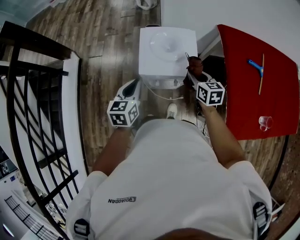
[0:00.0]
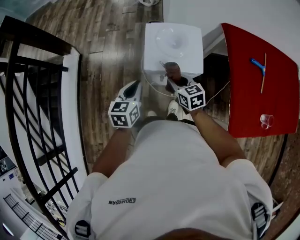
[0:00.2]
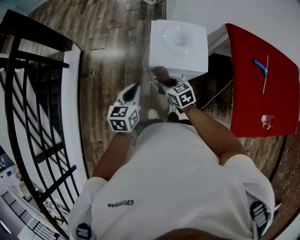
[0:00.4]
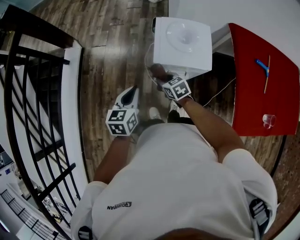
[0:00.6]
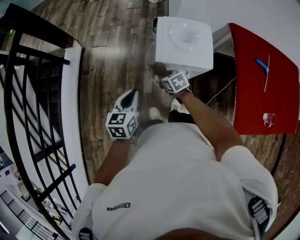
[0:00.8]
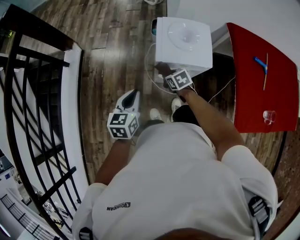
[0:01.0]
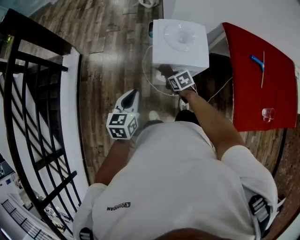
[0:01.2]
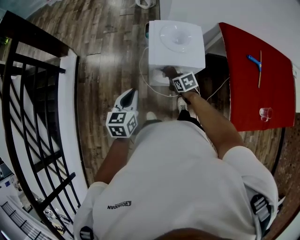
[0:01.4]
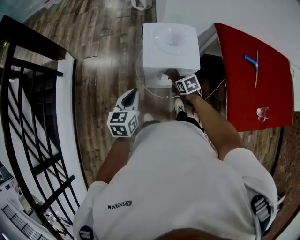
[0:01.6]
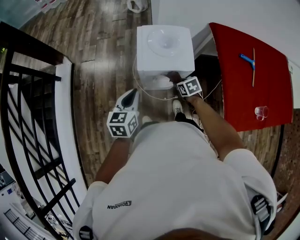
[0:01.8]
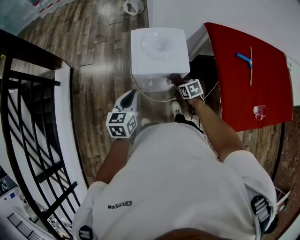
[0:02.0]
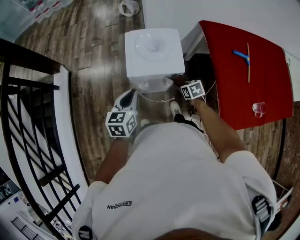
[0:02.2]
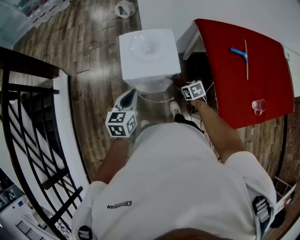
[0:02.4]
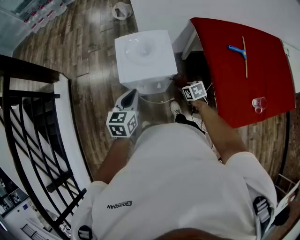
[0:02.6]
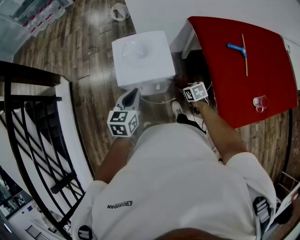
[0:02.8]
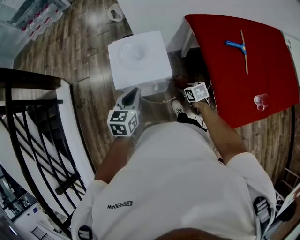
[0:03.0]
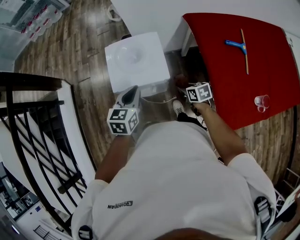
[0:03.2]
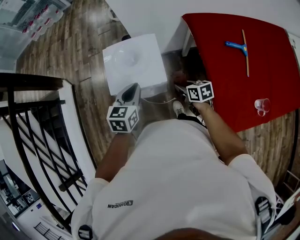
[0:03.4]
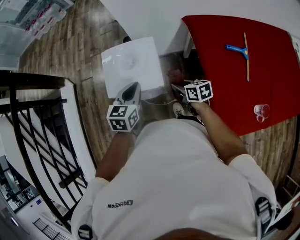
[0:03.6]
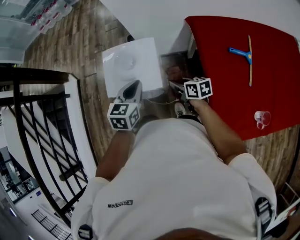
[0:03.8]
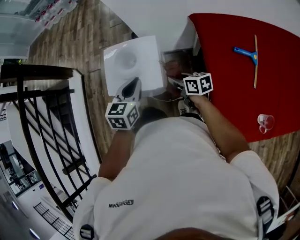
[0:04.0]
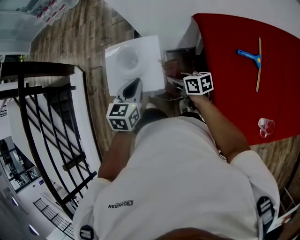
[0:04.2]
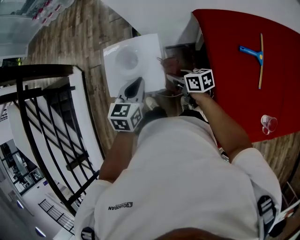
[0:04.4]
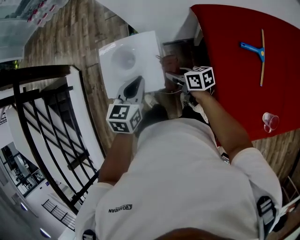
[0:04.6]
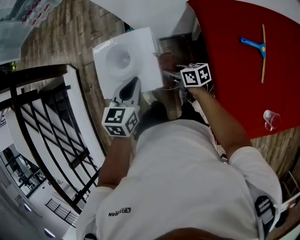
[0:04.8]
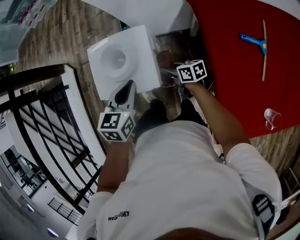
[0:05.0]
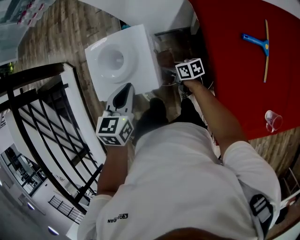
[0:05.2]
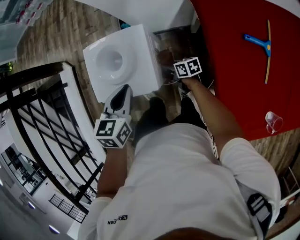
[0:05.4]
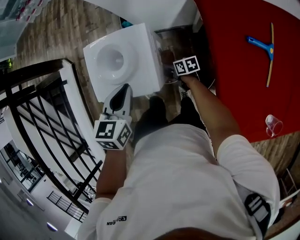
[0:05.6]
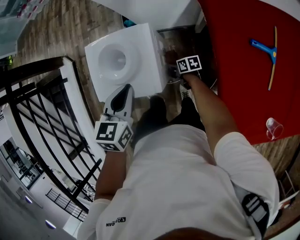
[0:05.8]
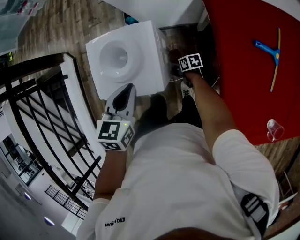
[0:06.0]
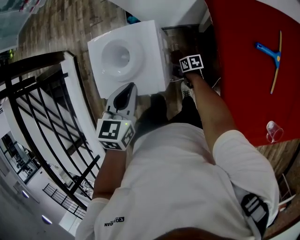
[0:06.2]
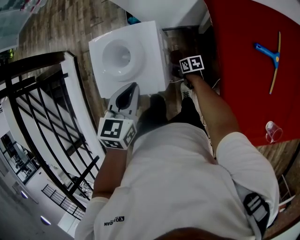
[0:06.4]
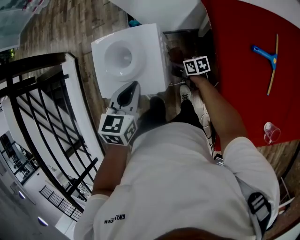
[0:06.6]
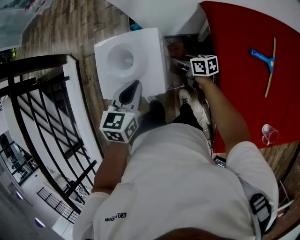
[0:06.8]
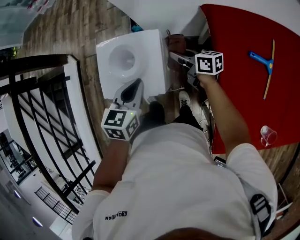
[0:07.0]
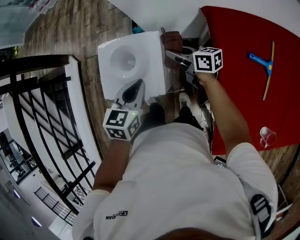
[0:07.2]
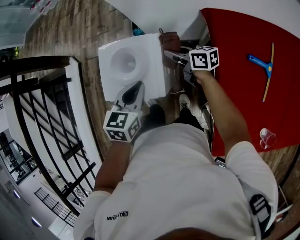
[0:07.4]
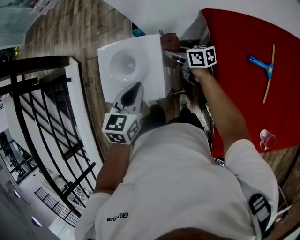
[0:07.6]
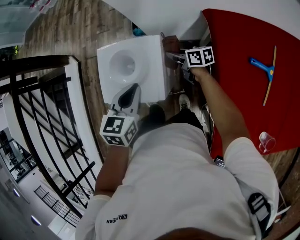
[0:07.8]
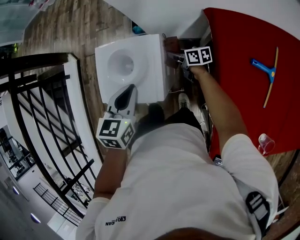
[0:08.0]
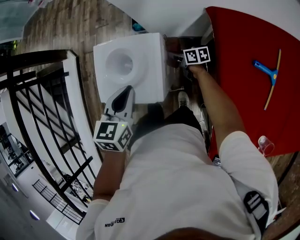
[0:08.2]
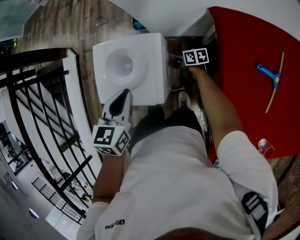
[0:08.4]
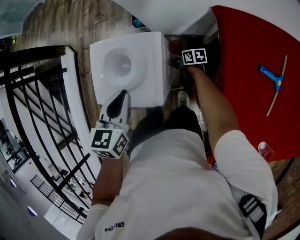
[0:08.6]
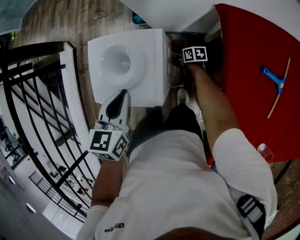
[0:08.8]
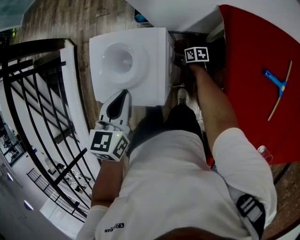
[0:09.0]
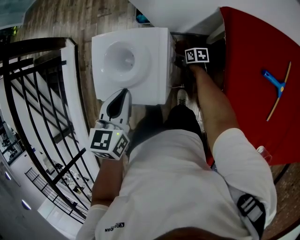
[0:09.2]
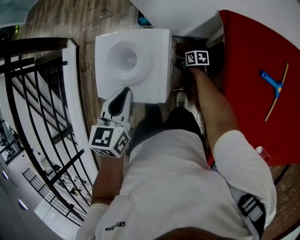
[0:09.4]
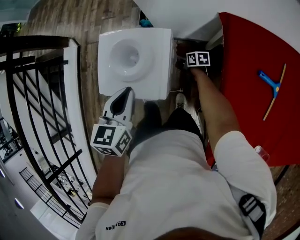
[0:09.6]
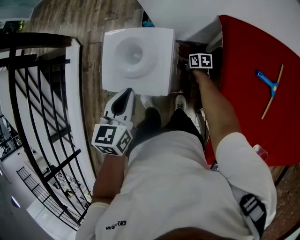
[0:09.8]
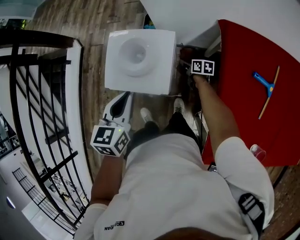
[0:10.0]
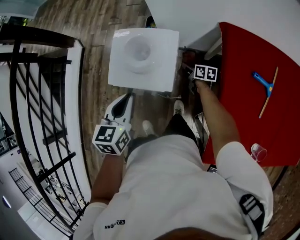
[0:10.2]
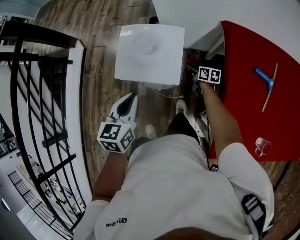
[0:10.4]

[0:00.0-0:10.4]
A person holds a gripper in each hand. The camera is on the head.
0:00.0 to 0:01.4: The left gripper travels to the left and backward by some 10 cm, while the right gripper moves downward and to the left, about 20 cm, and turns by about 30 degrees.
0:01.4 to 0:03.0: The two grippers go roughly 20 cm to the right.
0:03.0 to 0:04.4: The left gripper travels to the right and forward by some 15 cm. Meanwhile the right gripper is displaced forward and upward by some 15 cm, and angles its fingers upward, by roughly 30 degrees.
0:04.4 to 0:06.0: The right gripper heads downward, covering some 30 cm, and swivels roughly 30 degrees.
0:06.0 to 0:07.4: The right gripper moves upward, some 30 cm, and angles its fingers upward, by roughly 30 degrees.
0:07.4 to 0:09.0: The right gripper is displaced downward by roughly 30 cm, and angles its fingers downward, by approximately 30 degrees.
0:09.0 to 0:10.4: The left gripper moves to the left and backward, about 15 cm; the right gripper travels upward and backward by roughly 15 cm.

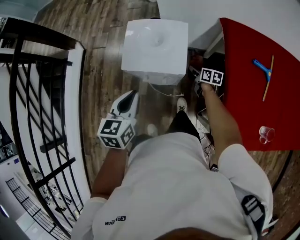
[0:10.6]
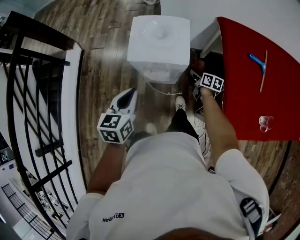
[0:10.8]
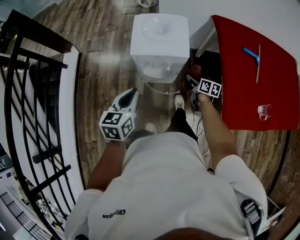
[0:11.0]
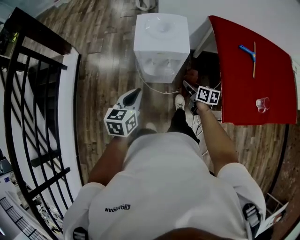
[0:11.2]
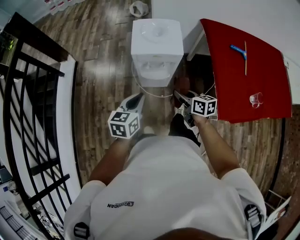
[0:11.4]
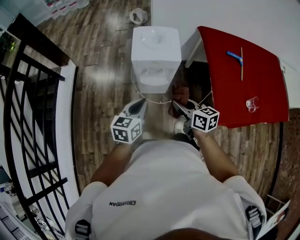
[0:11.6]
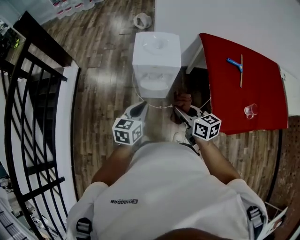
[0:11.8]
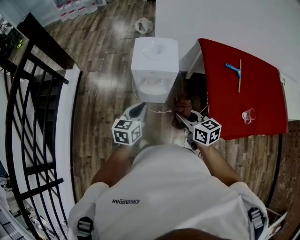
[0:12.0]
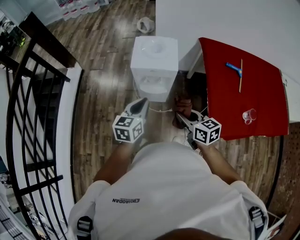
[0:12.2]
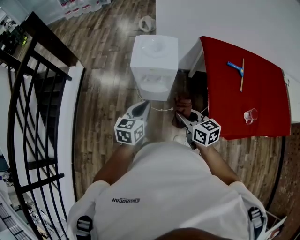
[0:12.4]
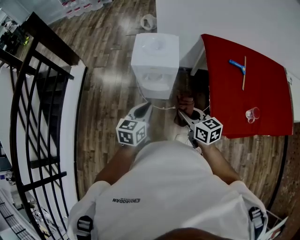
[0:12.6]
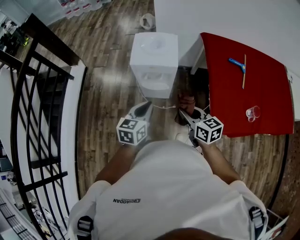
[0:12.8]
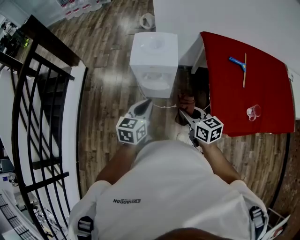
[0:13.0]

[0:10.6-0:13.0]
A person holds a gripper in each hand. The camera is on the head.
0:10.6 to 0:11.8: The left gripper shifts approximately 15 cm backward. Meanwhile the right gripper goes about 40 cm backward, upward and to the left, and rotates about 20 degrees.
0:11.8 to 0:13.0: Both grippers travel together to the right, approximately 5 cm.

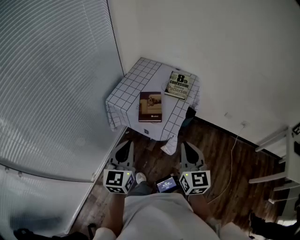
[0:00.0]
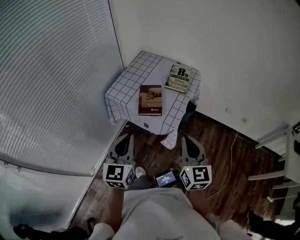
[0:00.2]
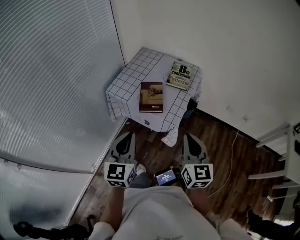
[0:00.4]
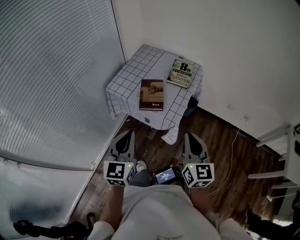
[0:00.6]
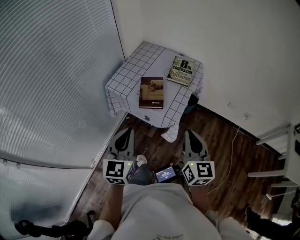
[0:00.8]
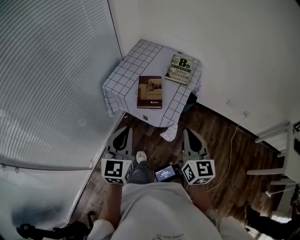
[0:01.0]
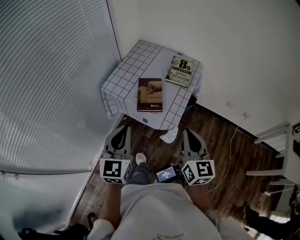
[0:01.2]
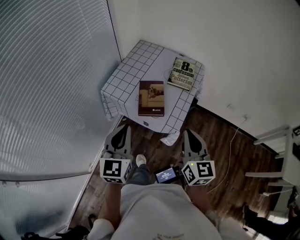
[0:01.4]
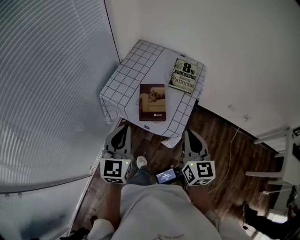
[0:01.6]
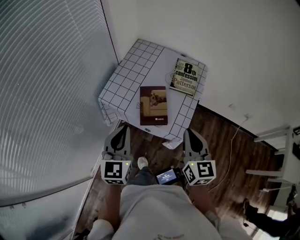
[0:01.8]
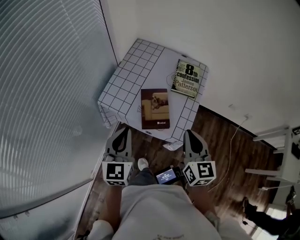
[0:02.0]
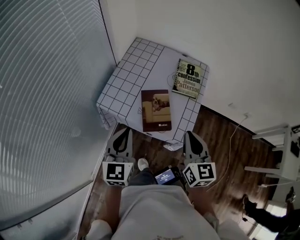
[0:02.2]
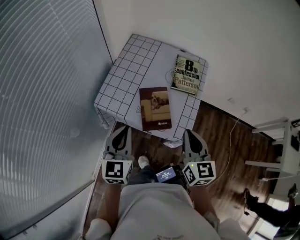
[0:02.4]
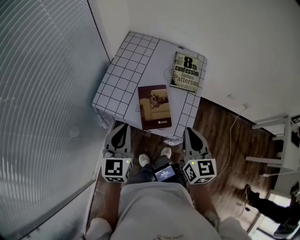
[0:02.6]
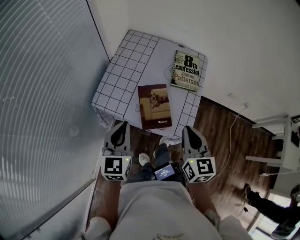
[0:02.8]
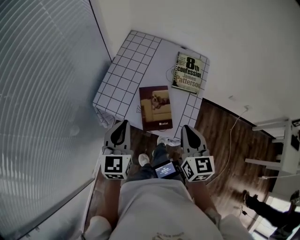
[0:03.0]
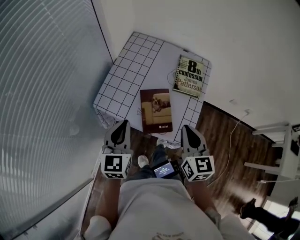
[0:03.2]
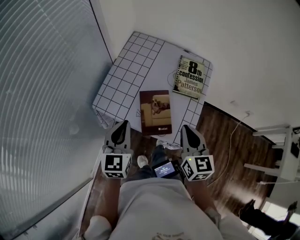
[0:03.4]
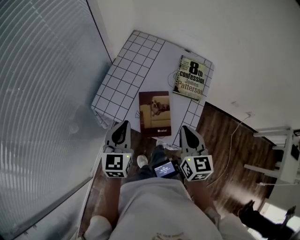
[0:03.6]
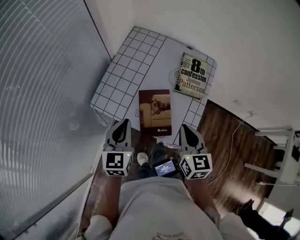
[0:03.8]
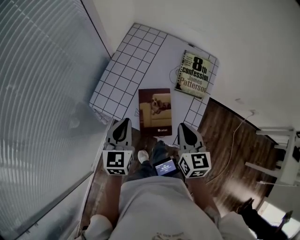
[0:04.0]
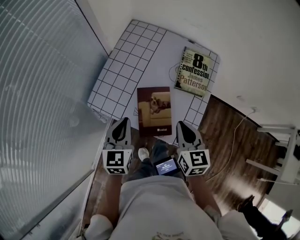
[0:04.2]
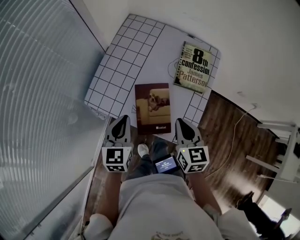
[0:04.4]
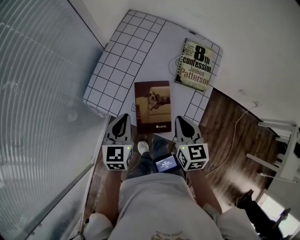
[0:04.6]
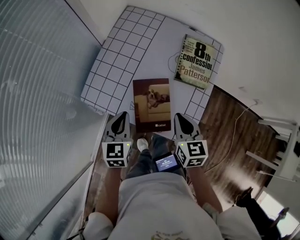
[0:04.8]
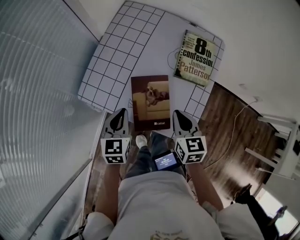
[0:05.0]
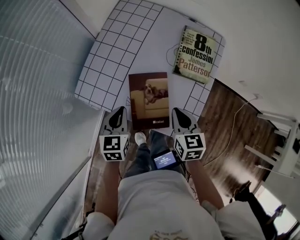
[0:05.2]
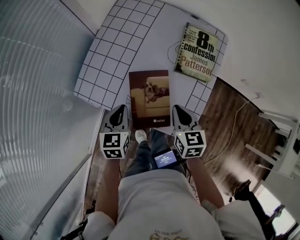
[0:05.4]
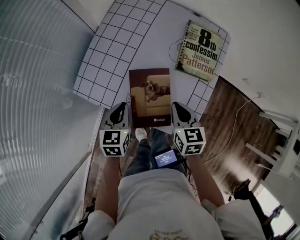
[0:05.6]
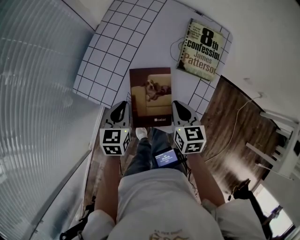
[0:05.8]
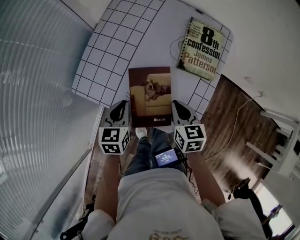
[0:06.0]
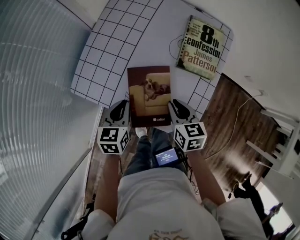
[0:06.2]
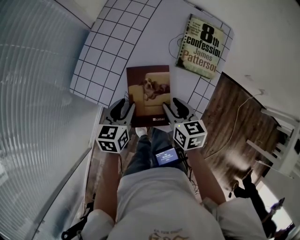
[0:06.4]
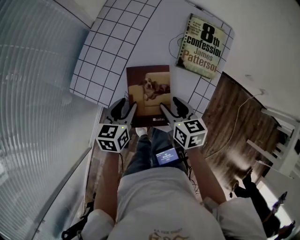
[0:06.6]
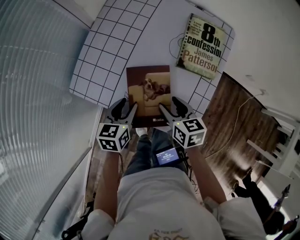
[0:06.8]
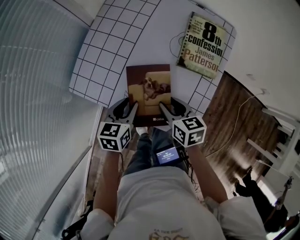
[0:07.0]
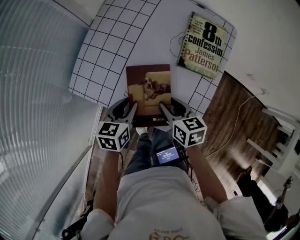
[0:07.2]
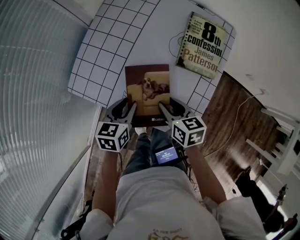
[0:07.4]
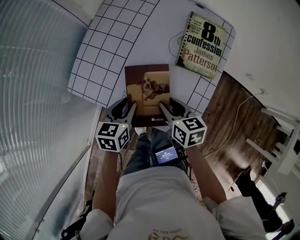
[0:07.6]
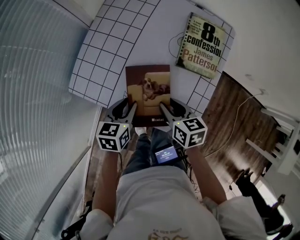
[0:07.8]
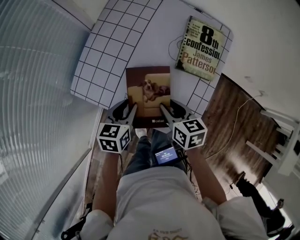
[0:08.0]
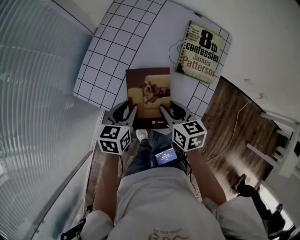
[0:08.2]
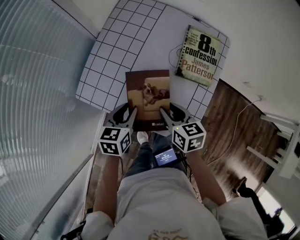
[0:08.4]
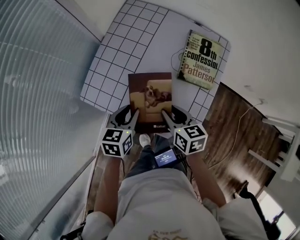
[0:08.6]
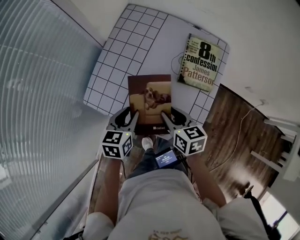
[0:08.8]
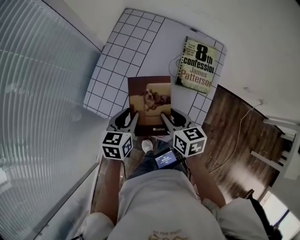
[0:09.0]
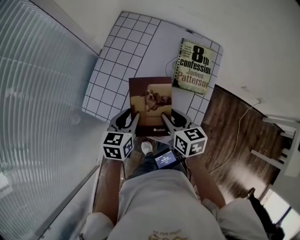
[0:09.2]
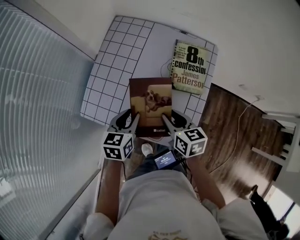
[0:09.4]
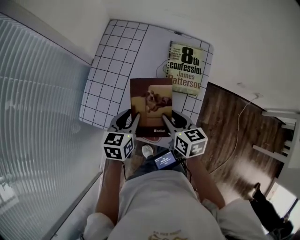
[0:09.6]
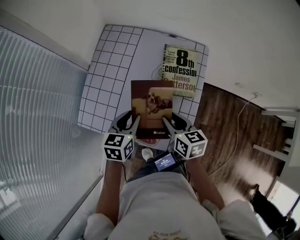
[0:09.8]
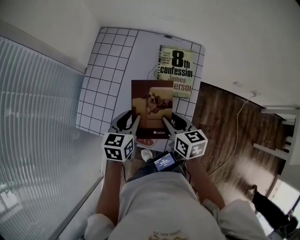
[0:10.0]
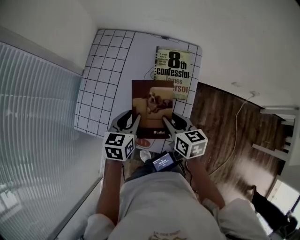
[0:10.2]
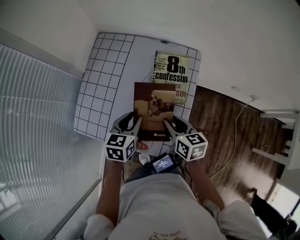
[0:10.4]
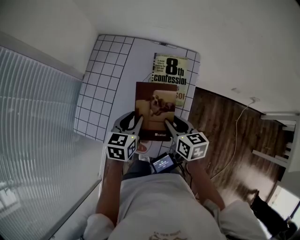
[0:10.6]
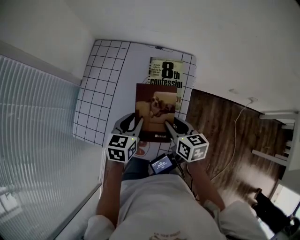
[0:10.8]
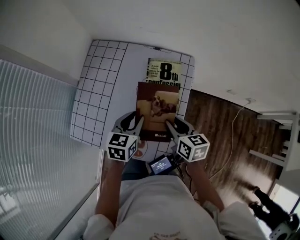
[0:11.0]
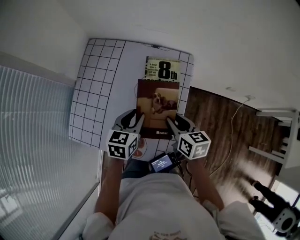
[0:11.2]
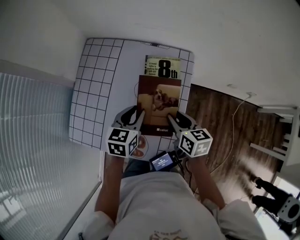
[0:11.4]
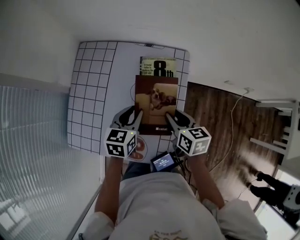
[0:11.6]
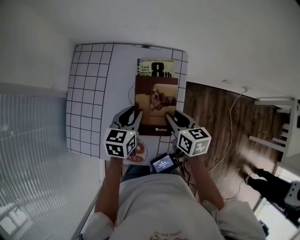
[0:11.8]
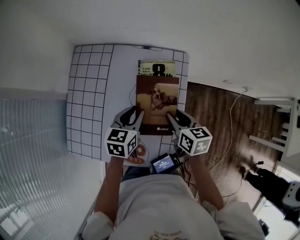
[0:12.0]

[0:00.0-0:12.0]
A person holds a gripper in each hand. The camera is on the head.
0:00.0 to 0:01.6: The grippers both shift forward by approximately 15 cm.
0:01.6 to 0:03.0: The right gripper heads forward, to the left and downward, covering some 15 cm, while the left gripper heads forward and downward, covering some 15 cm.
0:03.0 to 0:04.4: The two grippers go roughly 10 cm downward and forward.
0:04.4 to 0:06.0: Both grippers move downward, roughly 10 cm.
0:06.0 to 0:07.6: The left gripper opens up; the right gripper opens its fingers.
0:07.6 to 0:09.0: Both grippers travel together upward, approximately 5 cm.
0:09.0 to 0:10.4: The right gripper is displaced to the right by some 10 cm. Meanwhile the left gripper shifts approximately 15 cm to the right and forward.
0:10.4 to 0:12.0: Both grippers travel together forward and to the right, approximately 10 cm.
